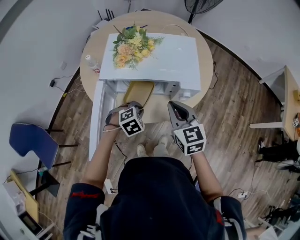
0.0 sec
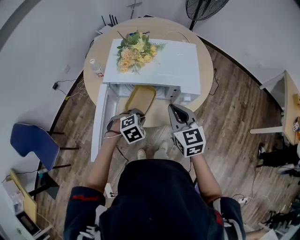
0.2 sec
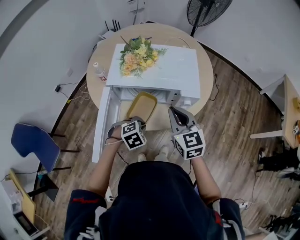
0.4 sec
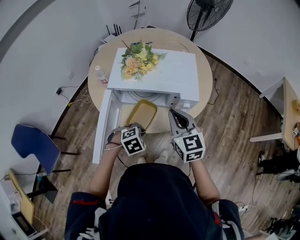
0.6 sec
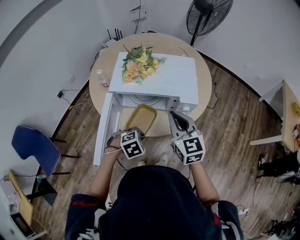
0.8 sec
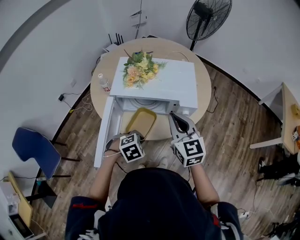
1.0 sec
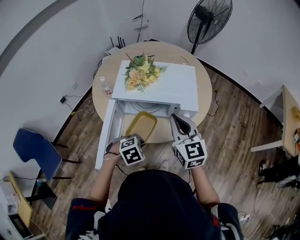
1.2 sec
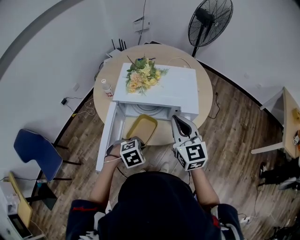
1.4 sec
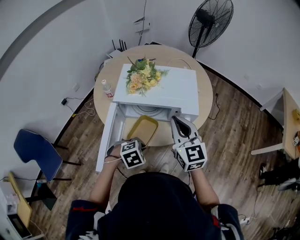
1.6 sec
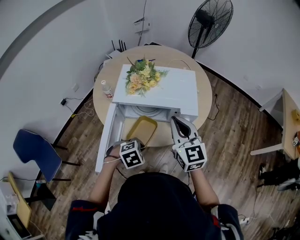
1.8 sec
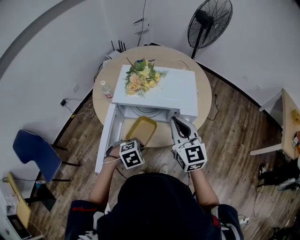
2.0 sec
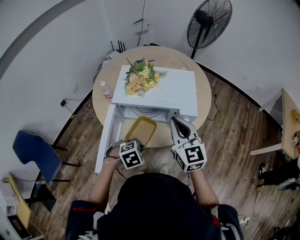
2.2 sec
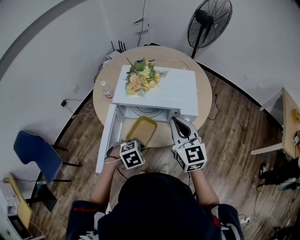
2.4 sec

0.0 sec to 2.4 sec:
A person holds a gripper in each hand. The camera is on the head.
0.0 sec to 1.2 sec: The right gripper travels upward by roughly 10 cm. The left gripper is displaced backward and upward by about 10 cm.
1.2 sec to 2.4 sec: Neither gripper changes place.

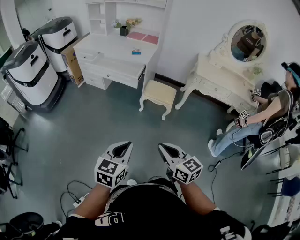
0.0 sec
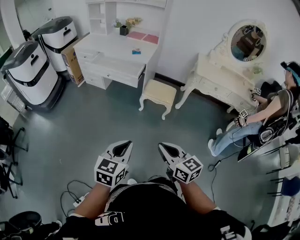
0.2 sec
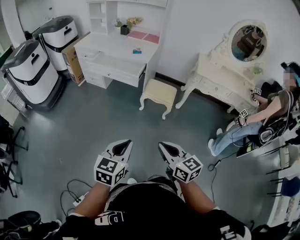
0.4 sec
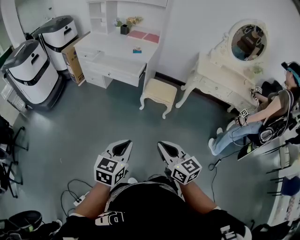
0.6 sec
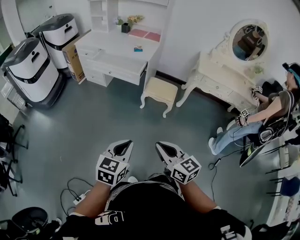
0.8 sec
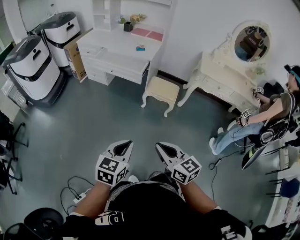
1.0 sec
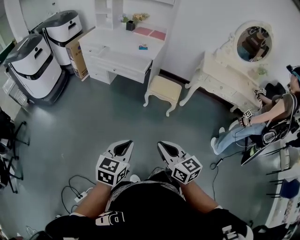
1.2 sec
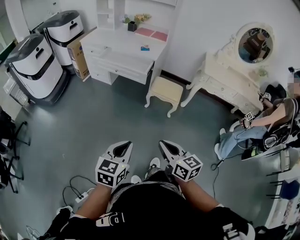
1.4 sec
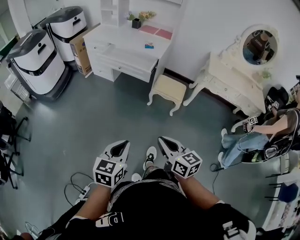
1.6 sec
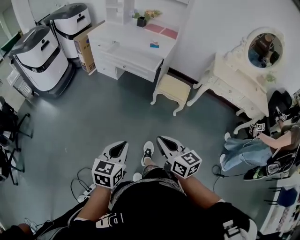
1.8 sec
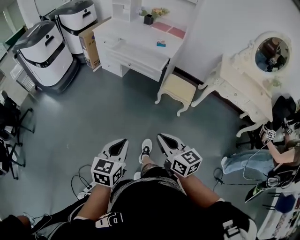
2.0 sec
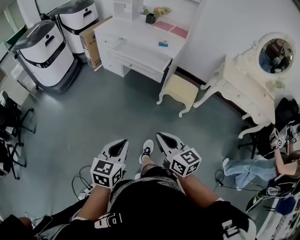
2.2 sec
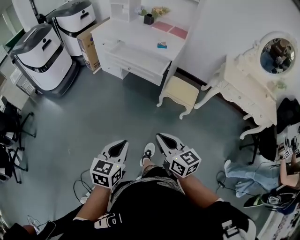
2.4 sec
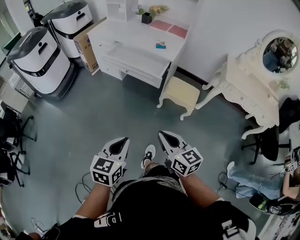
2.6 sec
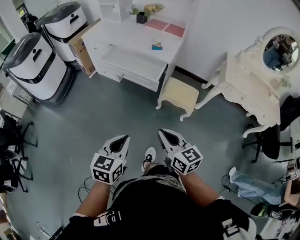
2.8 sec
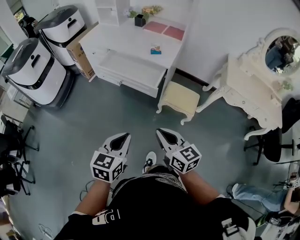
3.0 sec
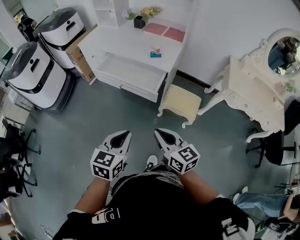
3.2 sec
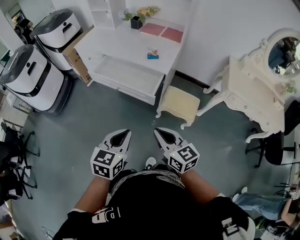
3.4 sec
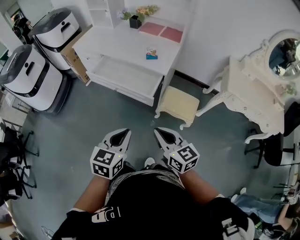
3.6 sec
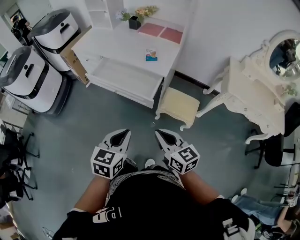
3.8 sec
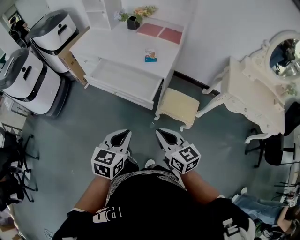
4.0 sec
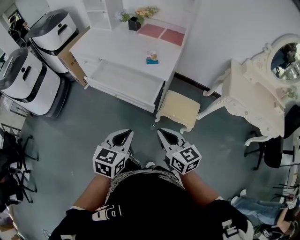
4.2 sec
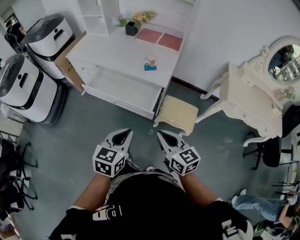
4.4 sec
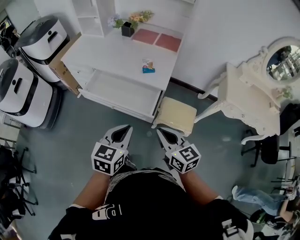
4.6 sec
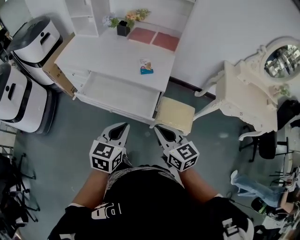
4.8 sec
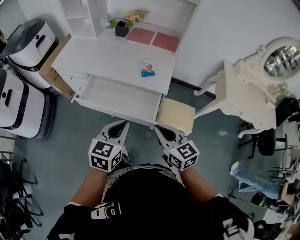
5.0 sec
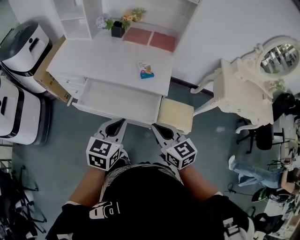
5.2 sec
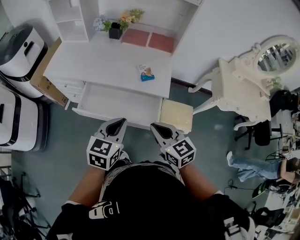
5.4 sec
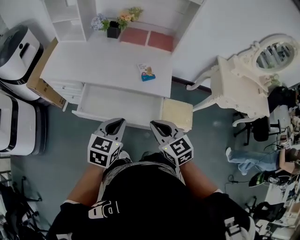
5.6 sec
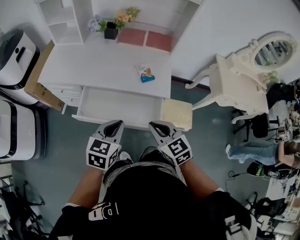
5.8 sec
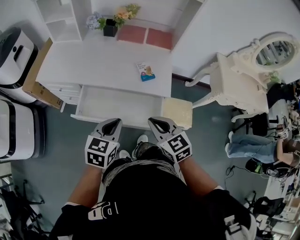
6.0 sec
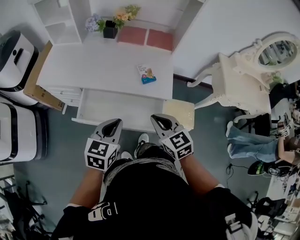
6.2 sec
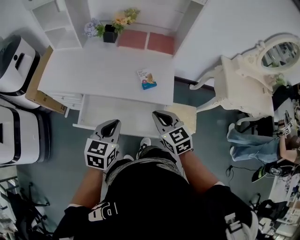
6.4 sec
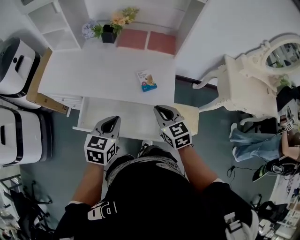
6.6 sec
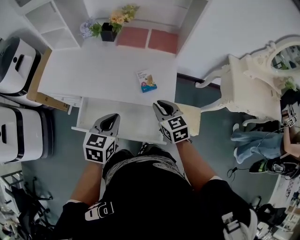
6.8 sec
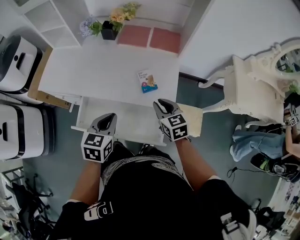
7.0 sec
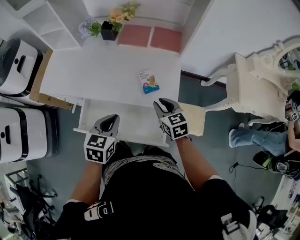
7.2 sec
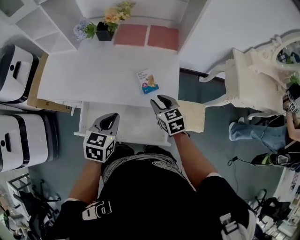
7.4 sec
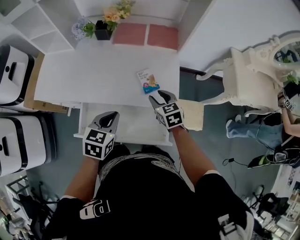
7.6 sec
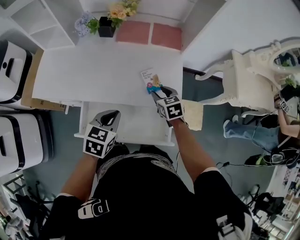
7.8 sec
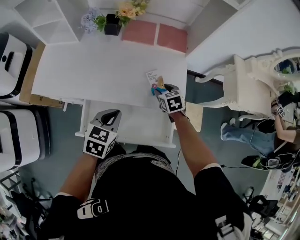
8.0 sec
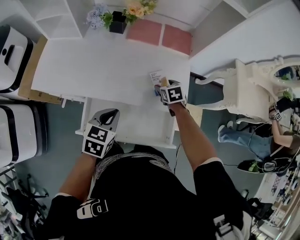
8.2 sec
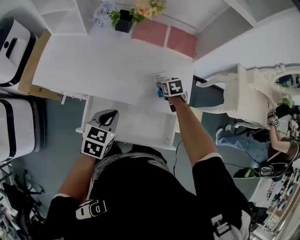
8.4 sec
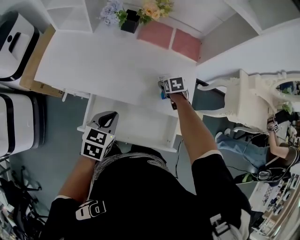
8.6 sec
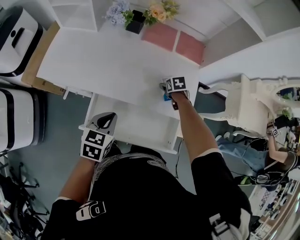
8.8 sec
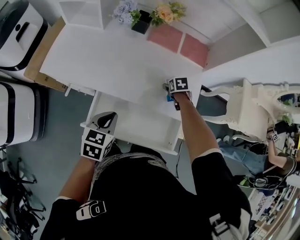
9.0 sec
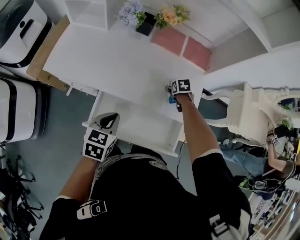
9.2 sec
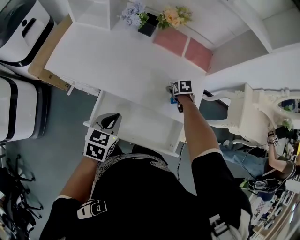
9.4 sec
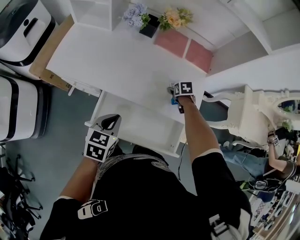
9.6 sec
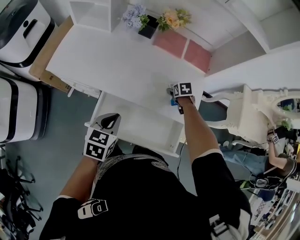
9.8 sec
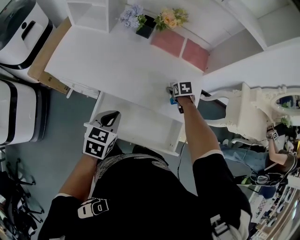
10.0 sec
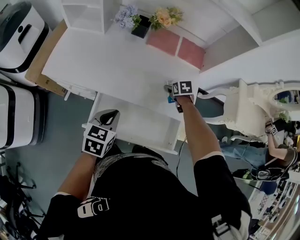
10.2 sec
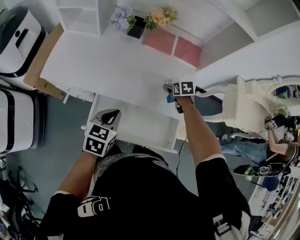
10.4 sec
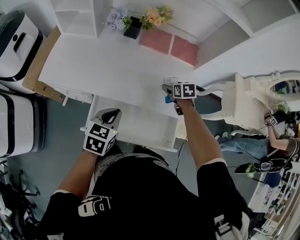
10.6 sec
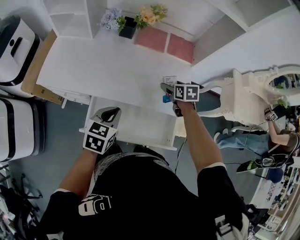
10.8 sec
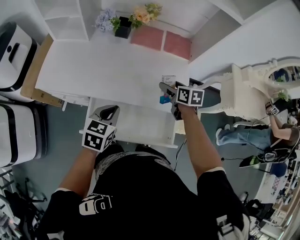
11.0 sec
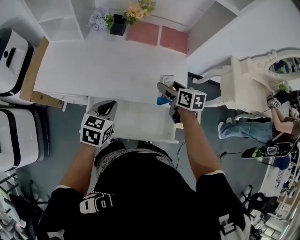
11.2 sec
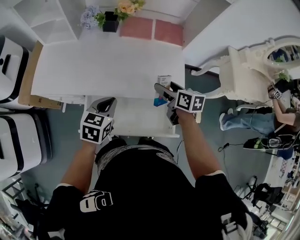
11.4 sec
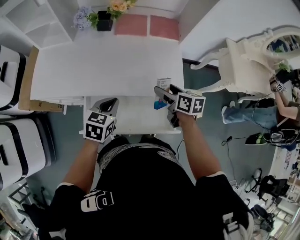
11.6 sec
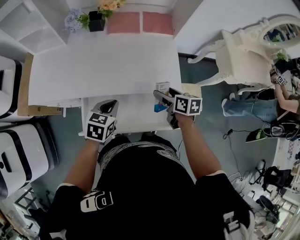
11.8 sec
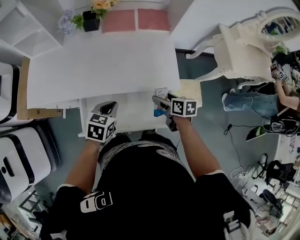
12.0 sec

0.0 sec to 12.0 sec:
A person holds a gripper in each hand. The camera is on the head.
0.0 sec to 1.6 sec: The grippers both shift to the left by some 10 cm.
1.6 sec to 3.0 sec: The grippers both shift forward by roughly 30 cm.
3.0 sec to 4.4 sec: The two grippers go approximately 20 cm forward.
4.4 sec to 6.0 sec: Both grippers move forward and to the left, about 30 cm. The right gripper turns by some 20 degrees.
6.0 sec to 7.6 sec: The left gripper shifts approximately 20 cm forward; the right gripper is displaced forward and downward by about 30 cm, and opens up.
7.6 sec to 9.0 sec: The right gripper is displaced forward and downward by about 20 cm, changes its angle by about 30 degrees, and opens its fingers, while the left gripper is displaced to the left by approximately 15 cm.
9.0 sec to 10.4 sec: The right gripper goes approximately 5 cm upward.
10.4 sec to 12.0 sec: The left gripper travels to the right and downward by about 10 cm; the right gripper goes approximately 20 cm backward, and rotates about 40 degrees.

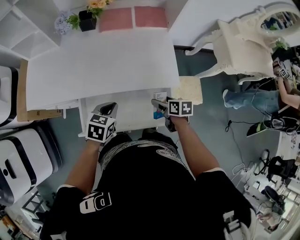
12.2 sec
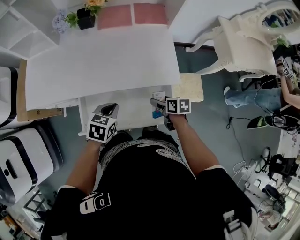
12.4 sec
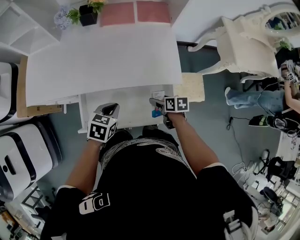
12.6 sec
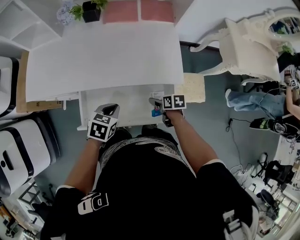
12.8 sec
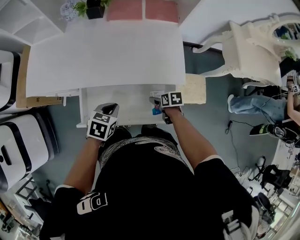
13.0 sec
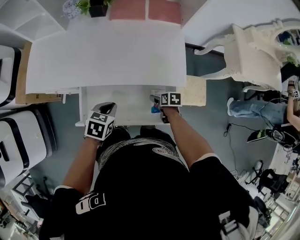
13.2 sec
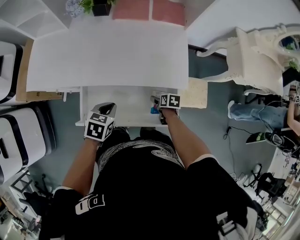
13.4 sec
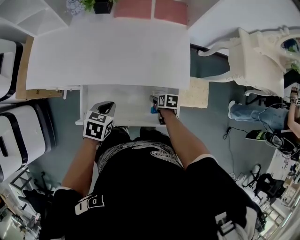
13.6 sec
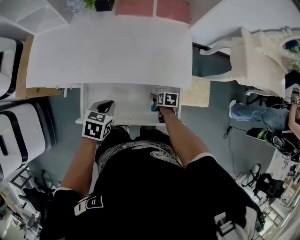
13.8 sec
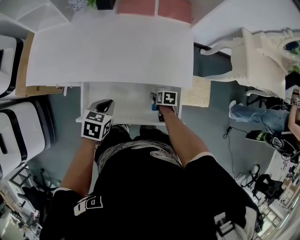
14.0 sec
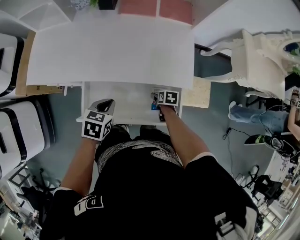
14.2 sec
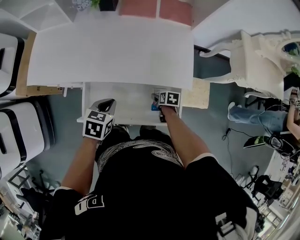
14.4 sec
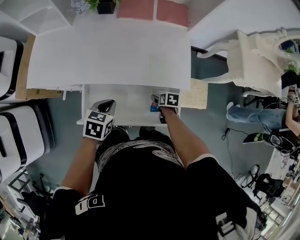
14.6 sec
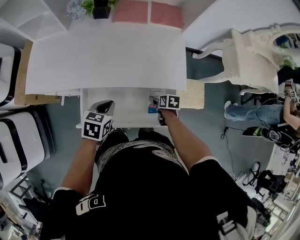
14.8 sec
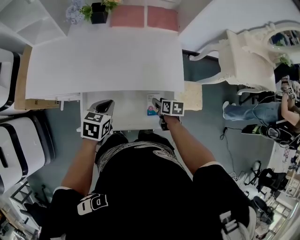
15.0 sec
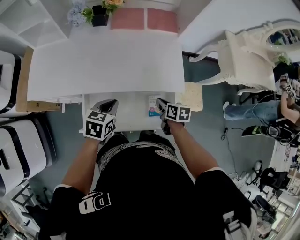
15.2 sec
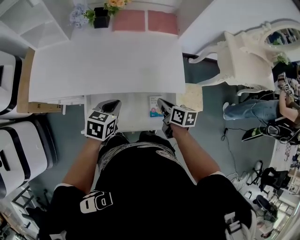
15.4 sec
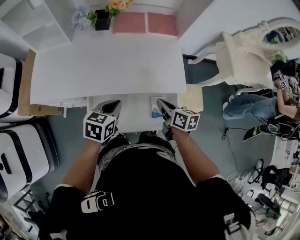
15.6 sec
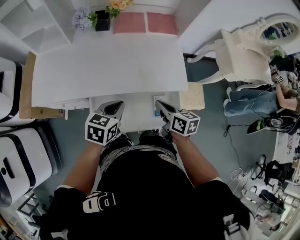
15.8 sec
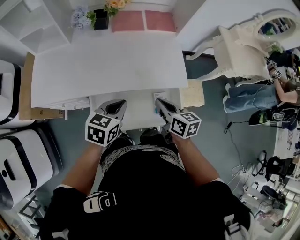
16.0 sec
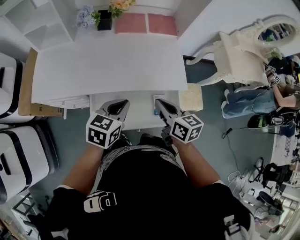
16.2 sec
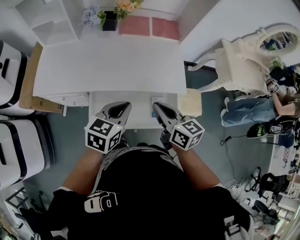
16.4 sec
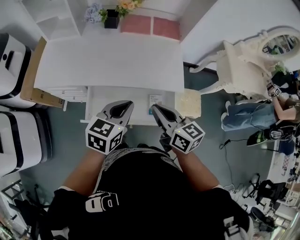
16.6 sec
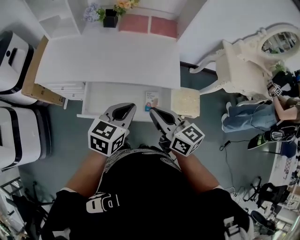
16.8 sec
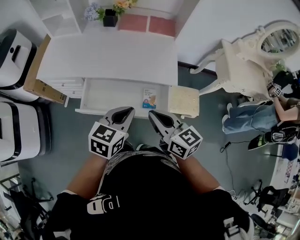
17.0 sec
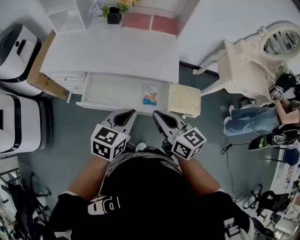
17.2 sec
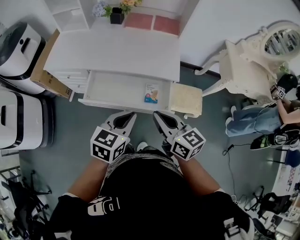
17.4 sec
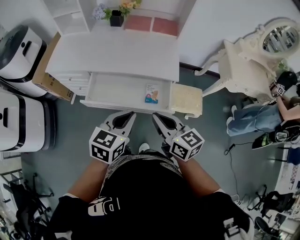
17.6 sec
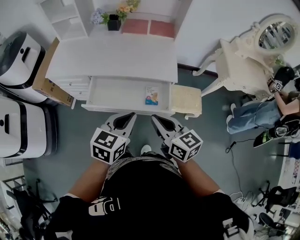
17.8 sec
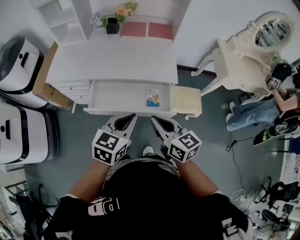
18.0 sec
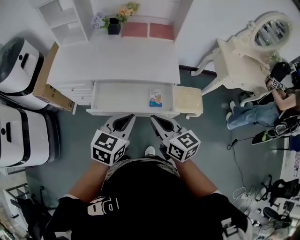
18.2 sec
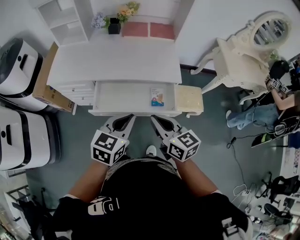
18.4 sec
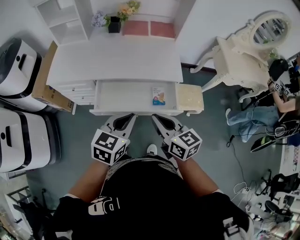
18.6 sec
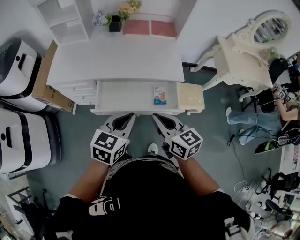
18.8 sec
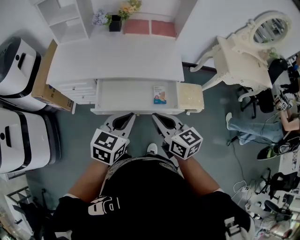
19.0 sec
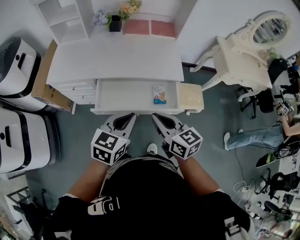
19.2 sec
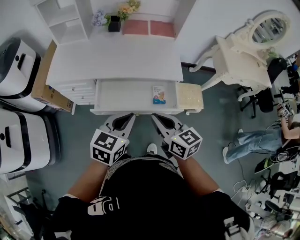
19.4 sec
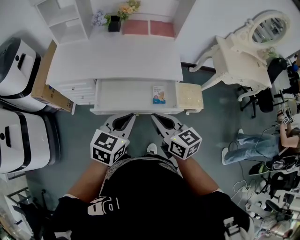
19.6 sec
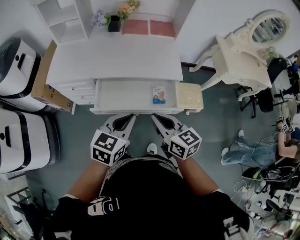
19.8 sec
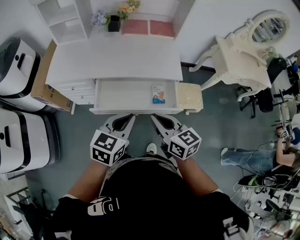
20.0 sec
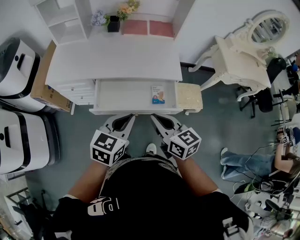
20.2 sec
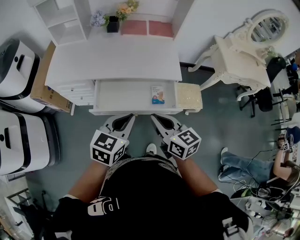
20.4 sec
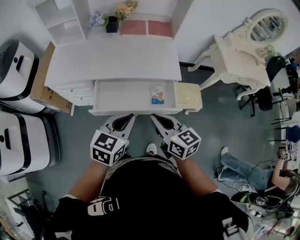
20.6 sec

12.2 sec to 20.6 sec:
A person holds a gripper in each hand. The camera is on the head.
12.2 sec to 13.6 sec: The left gripper moves roughly 5 cm, while the right gripper moves downward, approximately 15 cm.
13.6 sec to 15.0 sec: The right gripper goes approximately 10 cm upward, and closes.
15.0 sec to 16.4 sec: The right gripper heads upward, covering about 25 cm, angles its fingers upward, by approximately 40 degrees, and closes its fingers. Meanwhile the left gripper heads upward, covering approximately 10 cm.
16.4 sec to 17.8 sec: The left gripper shifts some 20 cm backward and to the right. The right gripper shifts approximately 20 cm backward.
17.8 sec to 19.2 sec: Both grippers travel together to the left, roughly 10 cm.
19.2 sec to 20.6 sec: Both grippers stay about where they are.

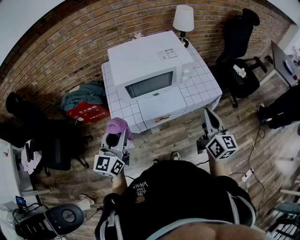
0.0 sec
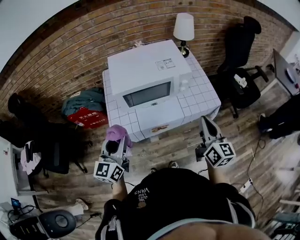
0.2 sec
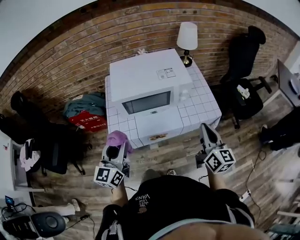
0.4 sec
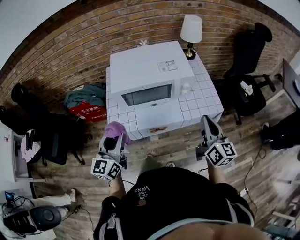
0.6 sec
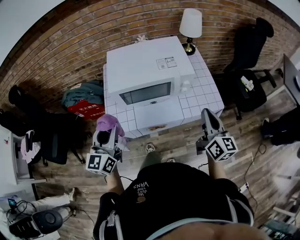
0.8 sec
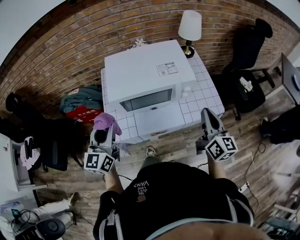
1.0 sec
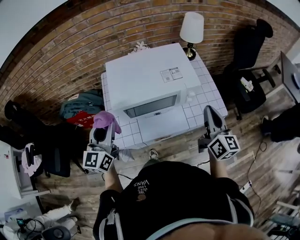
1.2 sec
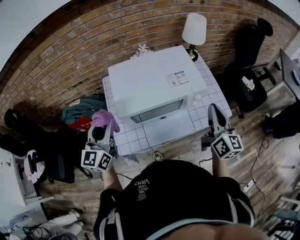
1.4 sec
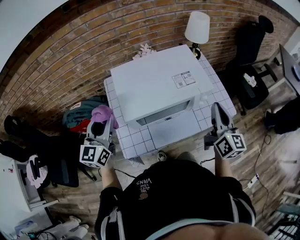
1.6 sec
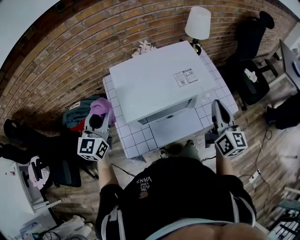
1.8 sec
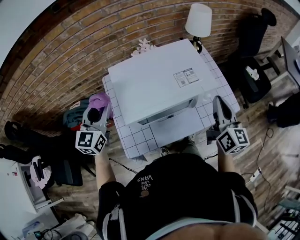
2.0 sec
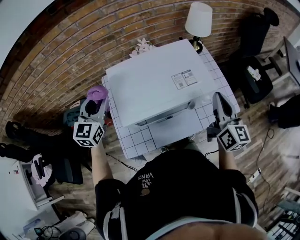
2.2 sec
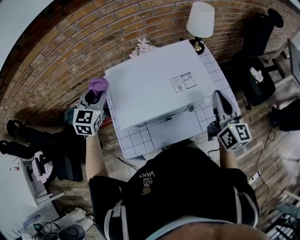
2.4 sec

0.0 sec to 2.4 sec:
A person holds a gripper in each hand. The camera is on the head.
0.0 sec to 1.2 sec: The two grippers go about 15 cm forward.
1.2 sec to 2.4 sec: The left gripper travels forward by approximately 25 cm, and changes its angle by some 30 degrees. The right gripper shifts roughly 10 cm forward.
